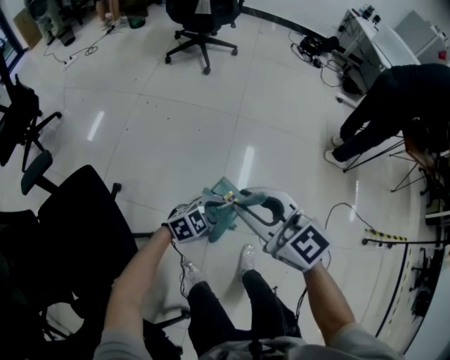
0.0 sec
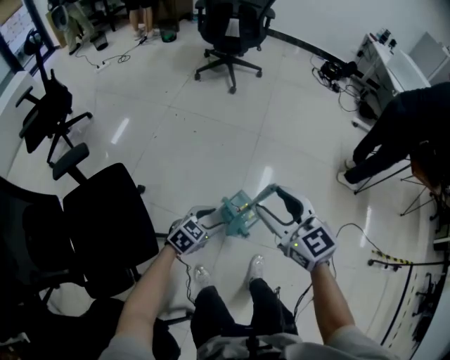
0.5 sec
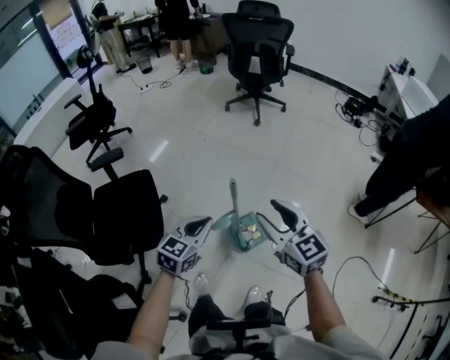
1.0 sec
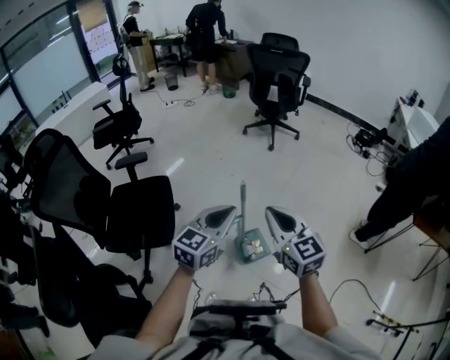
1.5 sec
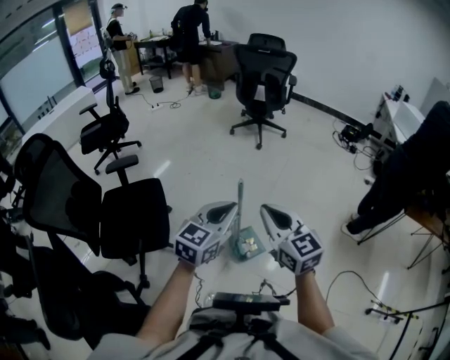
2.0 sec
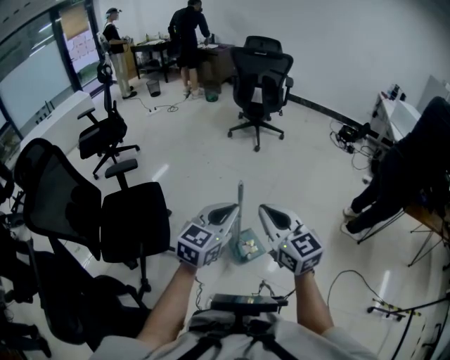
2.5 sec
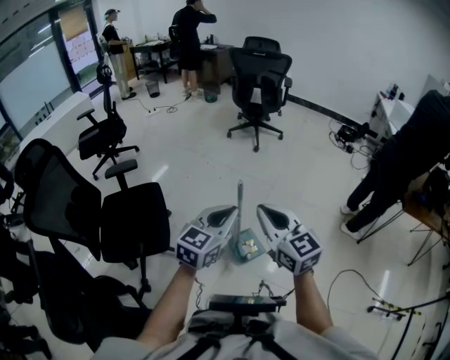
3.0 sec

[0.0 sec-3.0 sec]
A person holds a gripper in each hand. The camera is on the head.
0.0 sec to 1.5 sec: The left gripper is displaced upward by about 40 cm, rotates some 60 degrees, and closes its fingers, while the right gripper is displaced upward by roughly 15 cm, and closes.
1.5 sec to 3.0 sec: The grippers move only a little.

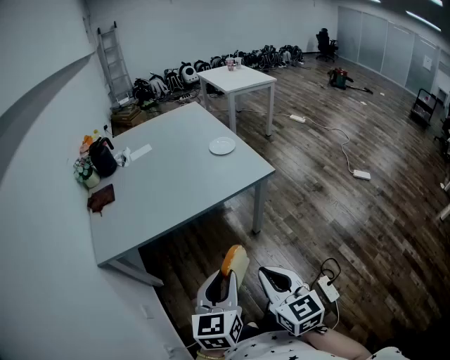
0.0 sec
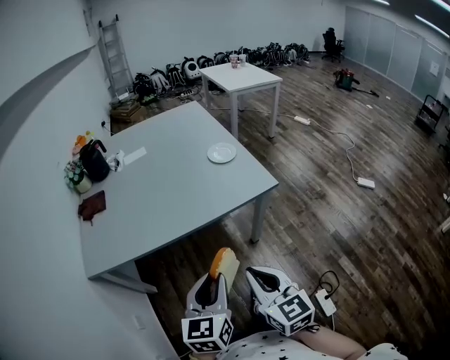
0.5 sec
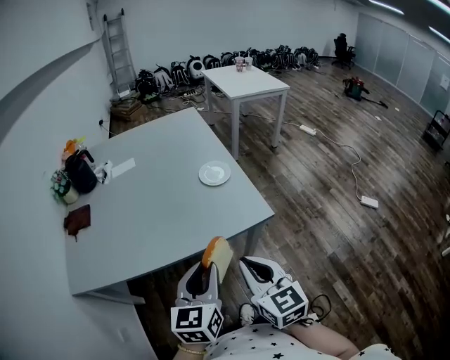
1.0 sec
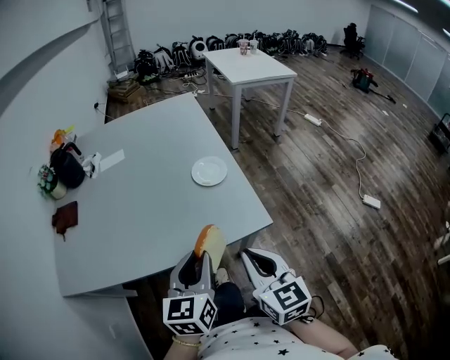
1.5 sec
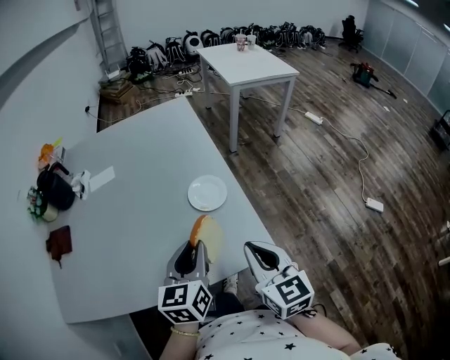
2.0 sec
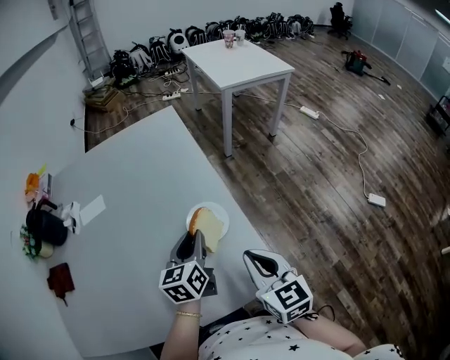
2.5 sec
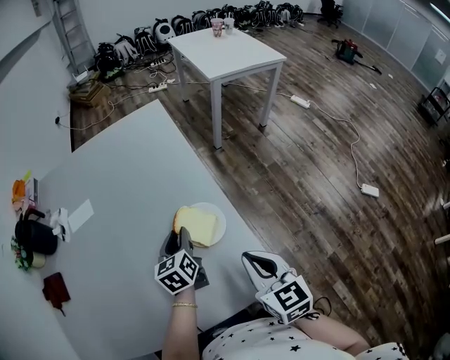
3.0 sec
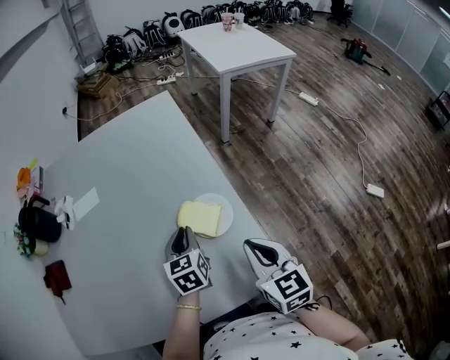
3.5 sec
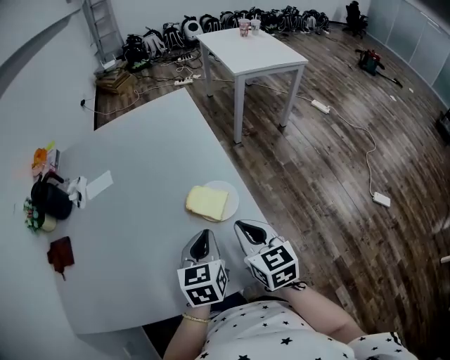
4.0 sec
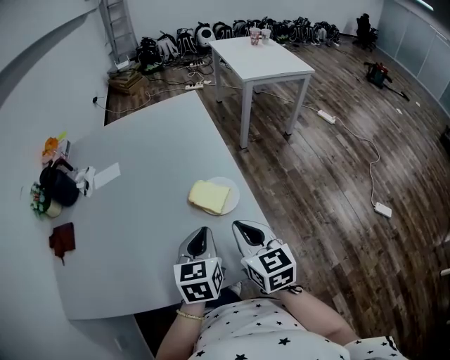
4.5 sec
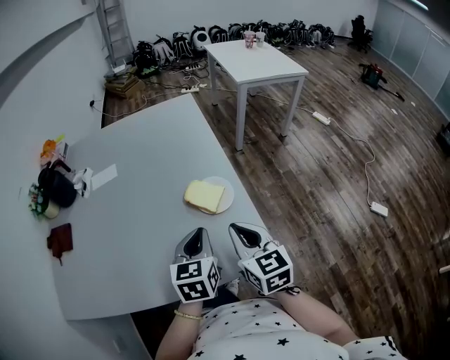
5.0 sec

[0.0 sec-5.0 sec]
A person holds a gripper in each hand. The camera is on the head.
0.0 sec to 2.5 sec: The two grippers travel together, forward, about 60 cm.
2.5 sec to 5.0 sec: The left gripper moves backward, roughly 10 cm.

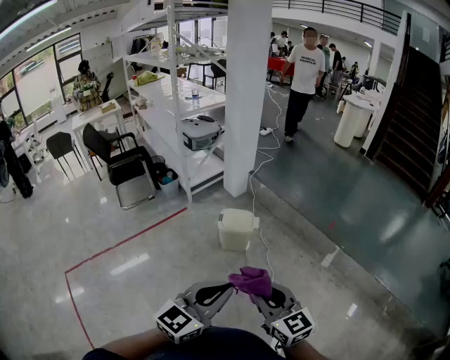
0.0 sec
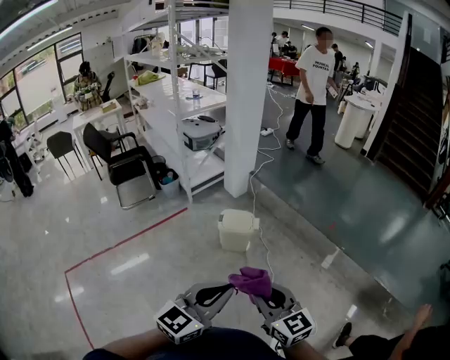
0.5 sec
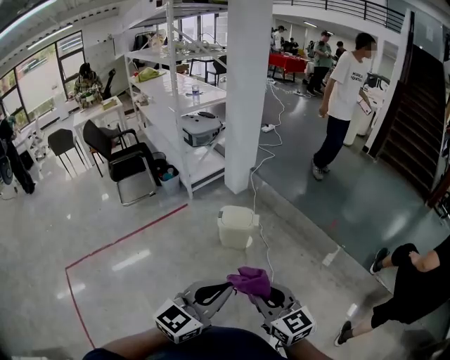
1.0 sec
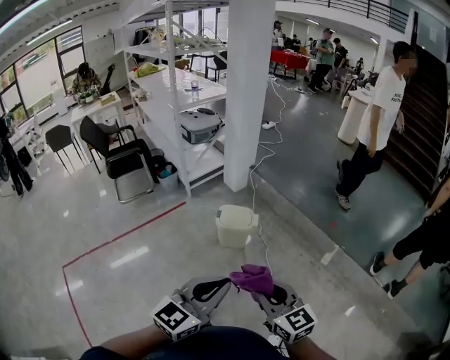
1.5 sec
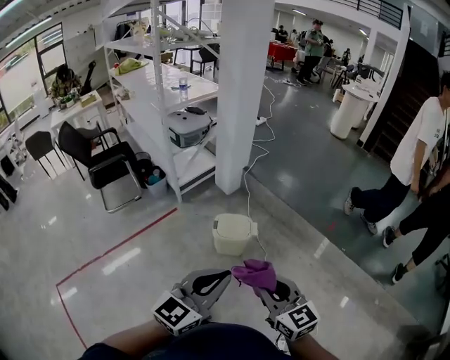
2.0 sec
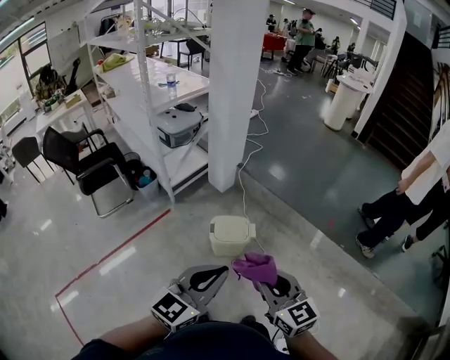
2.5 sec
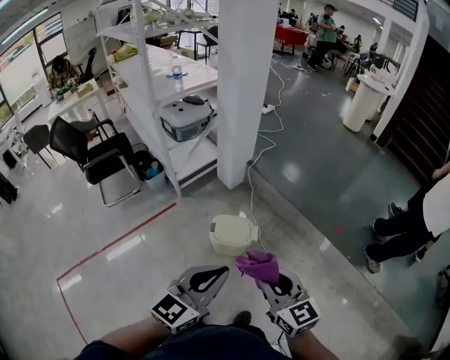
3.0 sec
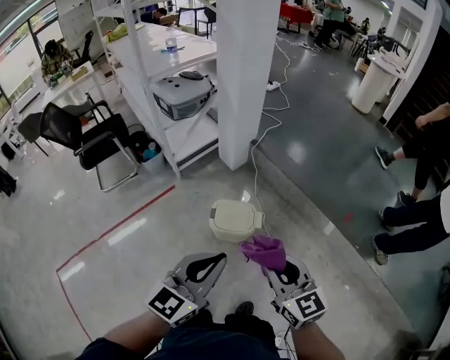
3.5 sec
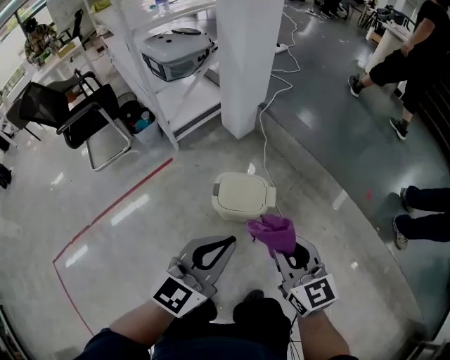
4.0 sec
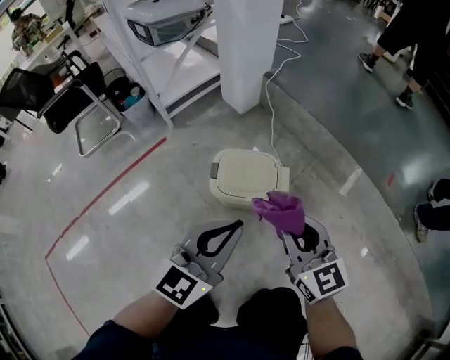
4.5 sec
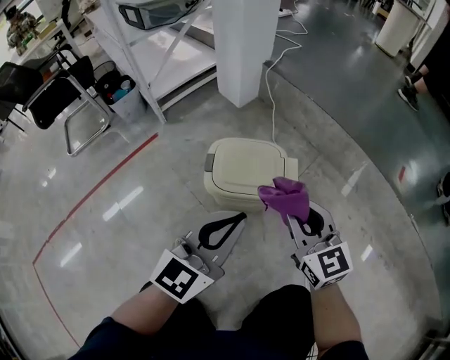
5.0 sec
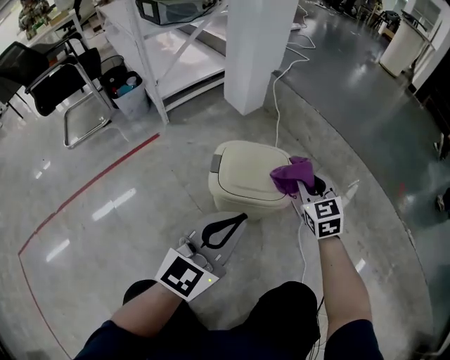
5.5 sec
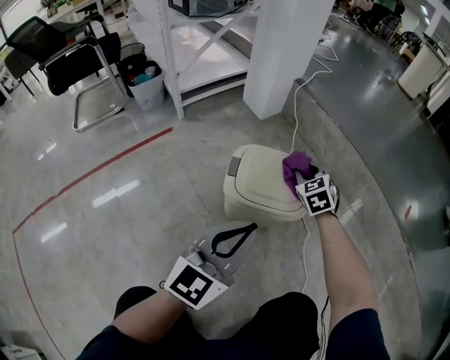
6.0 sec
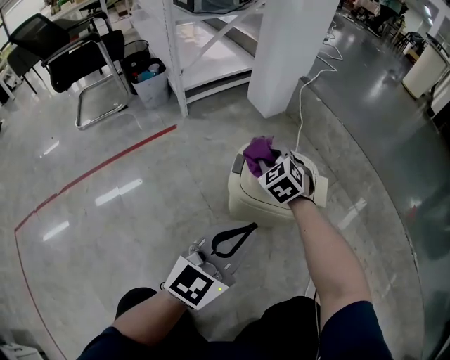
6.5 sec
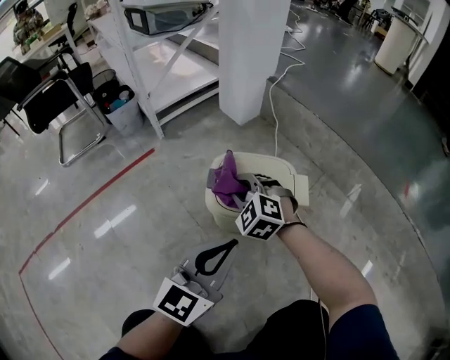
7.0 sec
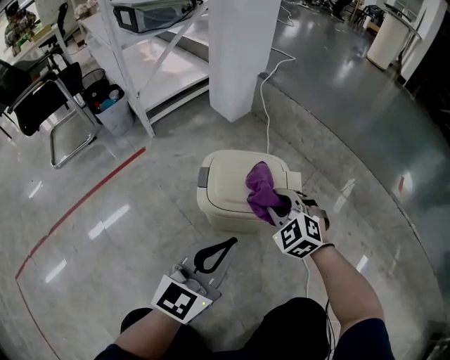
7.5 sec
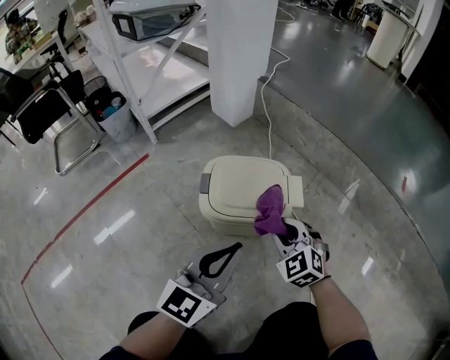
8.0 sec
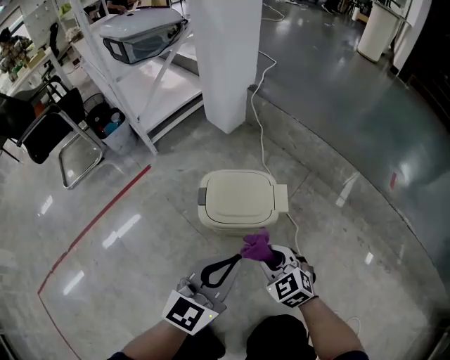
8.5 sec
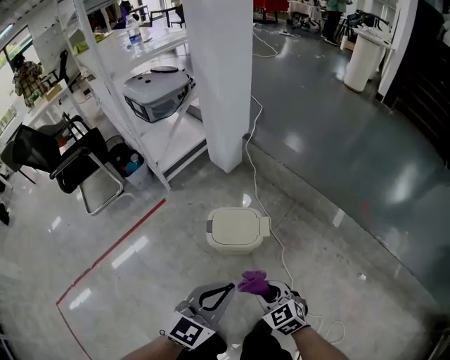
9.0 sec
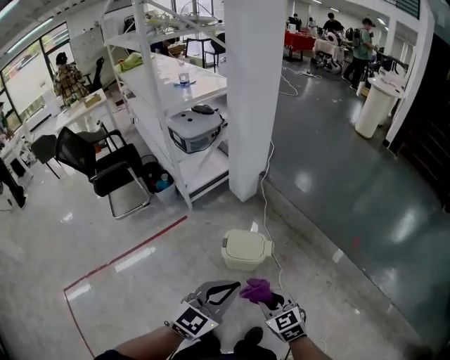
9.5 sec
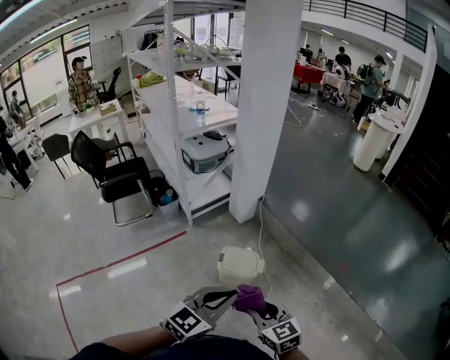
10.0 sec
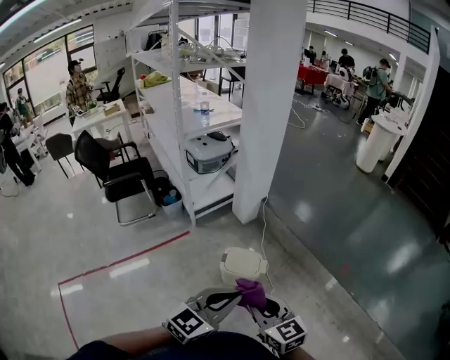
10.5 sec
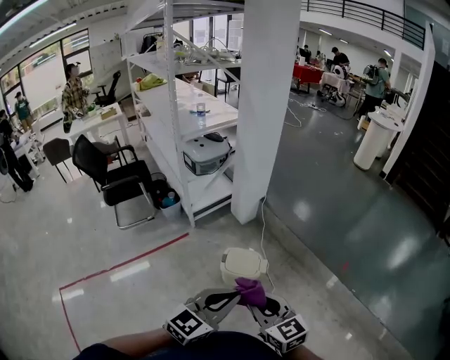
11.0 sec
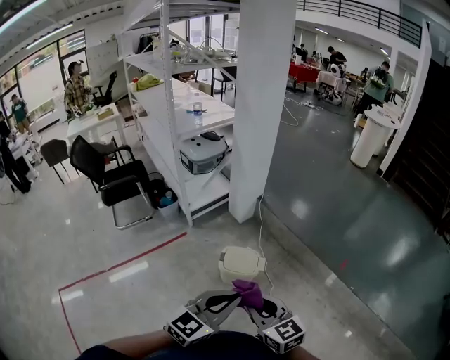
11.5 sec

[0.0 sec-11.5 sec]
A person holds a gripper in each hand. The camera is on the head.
0.0 sec to 2.0 sec: The two grippers go some 20 cm forward.
2.0 sec to 4.0 sec: Both grippers move forward and downward, approximately 40 cm.
4.0 sec to 6.0 sec: The left gripper goes about 35 cm downward. The right gripper is displaced downward and forward by about 60 cm, and rotates some 40 degrees.
6.0 sec to 7.5 sec: The right gripper travels backward by about 10 cm, travels to the left and back again, approximately 15 cm each way, and swivels about 20 degrees.
7.5 sec to 9.5 sec: The right gripper shifts roughly 60 cm upward and backward, and changes its angle by about 40 degrees, while the left gripper is displaced upward by about 50 cm.
9.5 sec to 11.5 sec: The right gripper travels upward by about 15 cm, and rotates some 20 degrees, while the left gripper moves upward and backward, some 10 cm.

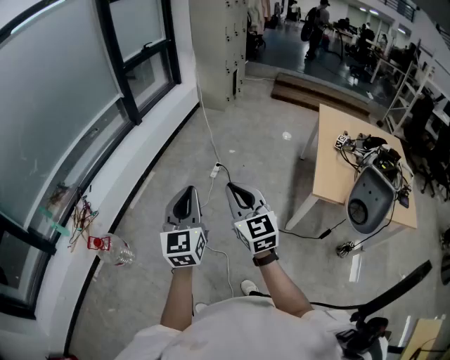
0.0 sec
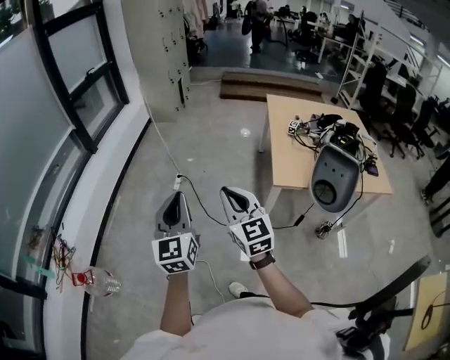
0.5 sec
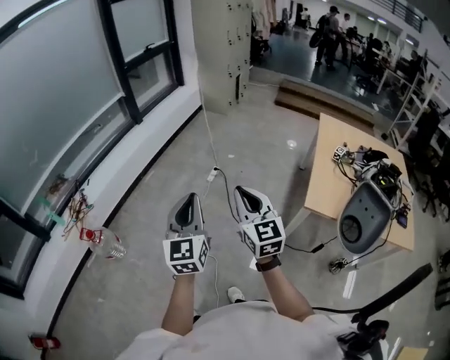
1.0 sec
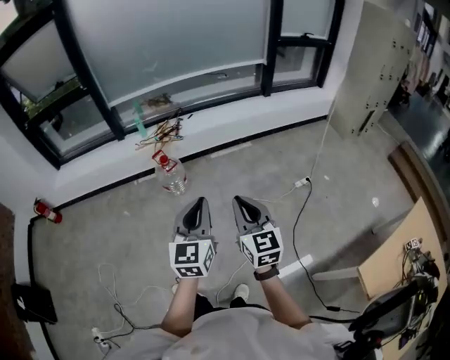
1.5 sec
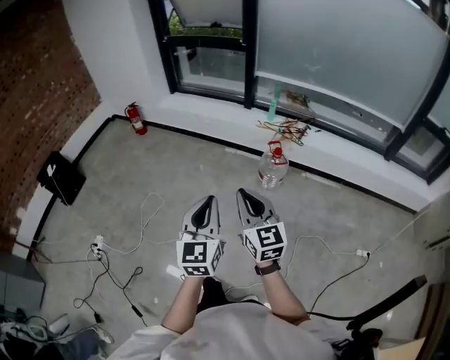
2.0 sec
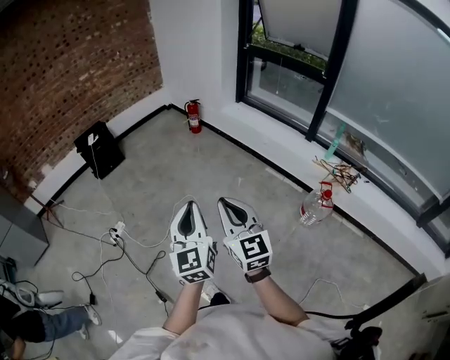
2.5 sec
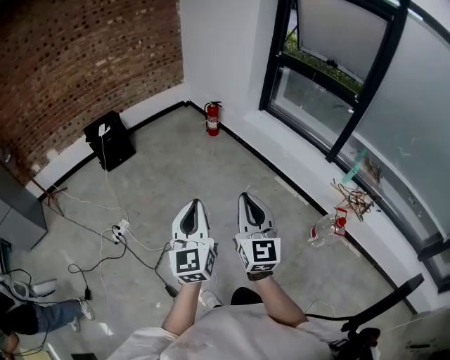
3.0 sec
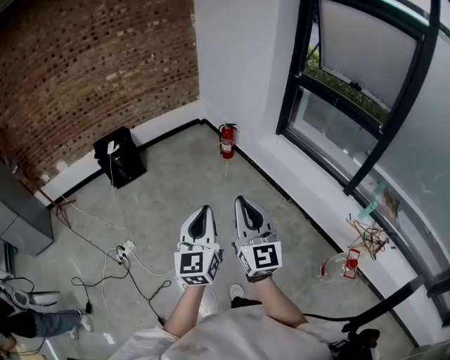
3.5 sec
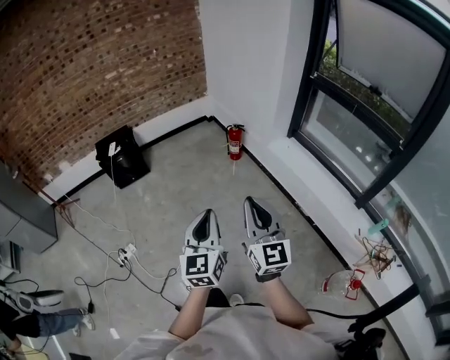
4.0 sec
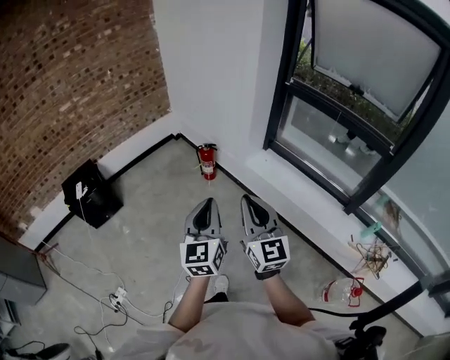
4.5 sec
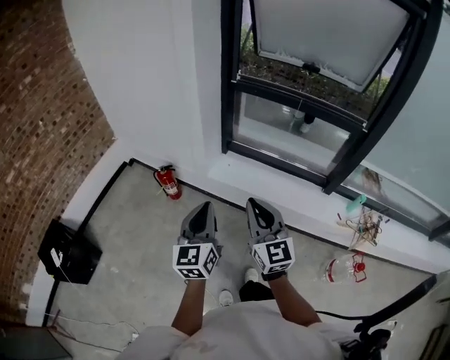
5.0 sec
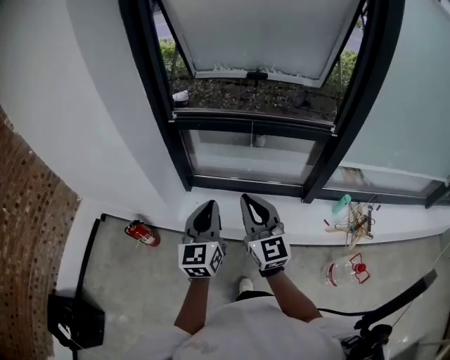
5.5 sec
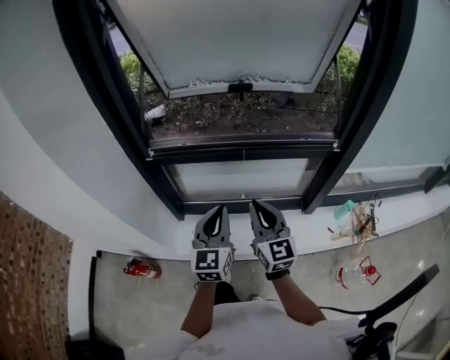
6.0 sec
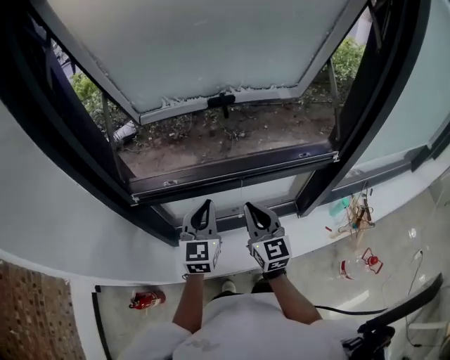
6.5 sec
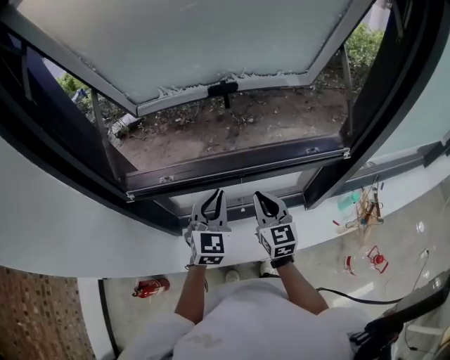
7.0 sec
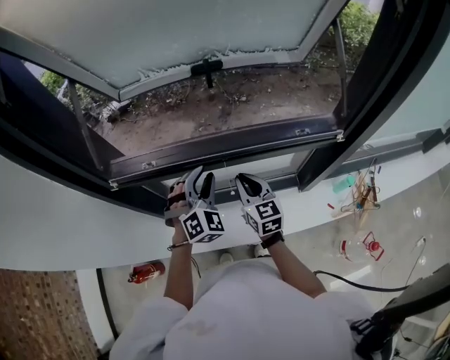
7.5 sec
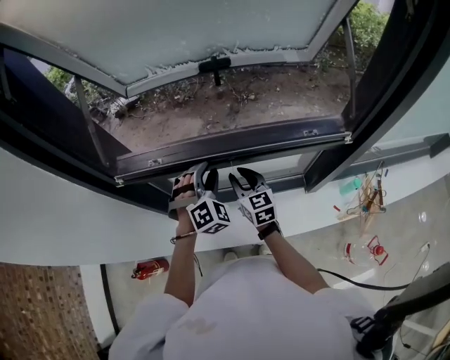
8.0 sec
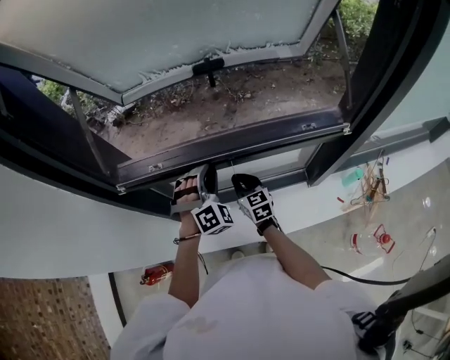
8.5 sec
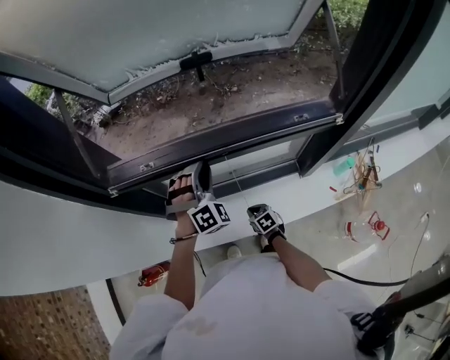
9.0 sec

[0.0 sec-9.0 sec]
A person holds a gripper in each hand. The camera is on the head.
0.0 sec to 2.0 sec: Both grippers are carried some 50 cm. The right gripper rotates some 90 degrees; the left gripper turns by approximately 90 degrees.
2.0 sec to 4.5 sec: Both grippers are carried about 90 cm. The right gripper turns by some 20 degrees, while the left gripper rotates approximately 30 degrees.
4.5 sec to 7.0 sec: The pair of grippers is taken some 90 cm. The right gripper rotates roughly 60 degrees. Meanwhile the left gripper turns by some 70 degrees.
7.0 sec to 9.0 sec: The left gripper moves downward and forward, about 10 cm, rotates around the line of its fingers by approximately 50 degrees, clockwise from behind, and opens its fingers. The right gripper travels downward by approximately 35 cm, tips its fingers downward by about 40 degrees, and opens, then closes once more.
